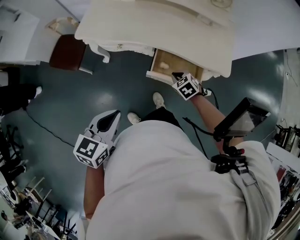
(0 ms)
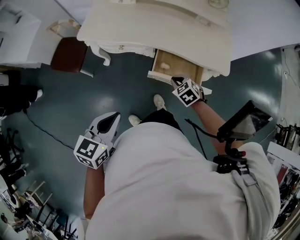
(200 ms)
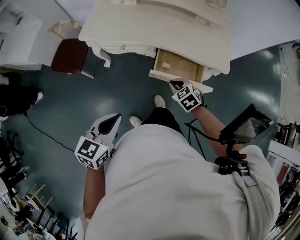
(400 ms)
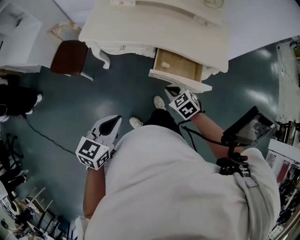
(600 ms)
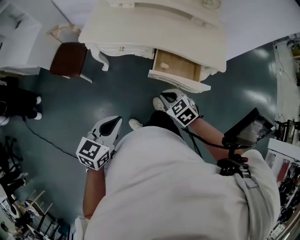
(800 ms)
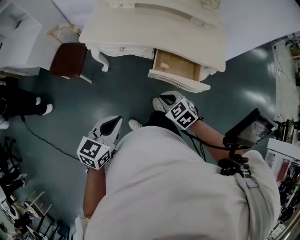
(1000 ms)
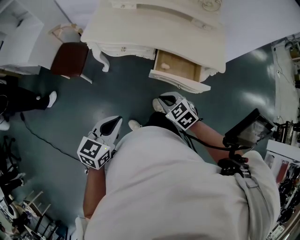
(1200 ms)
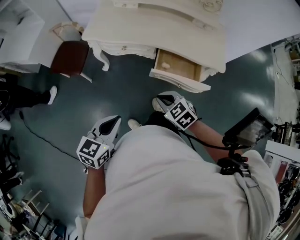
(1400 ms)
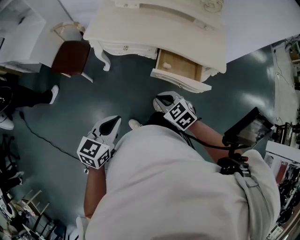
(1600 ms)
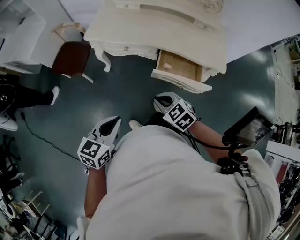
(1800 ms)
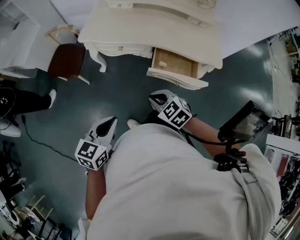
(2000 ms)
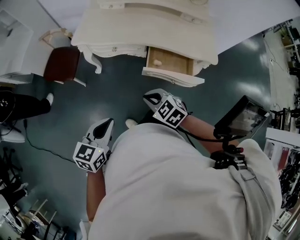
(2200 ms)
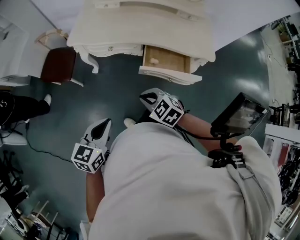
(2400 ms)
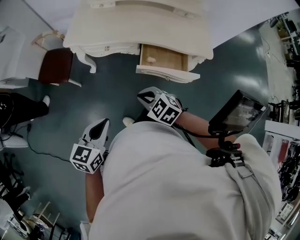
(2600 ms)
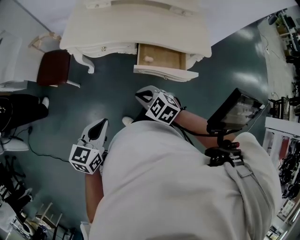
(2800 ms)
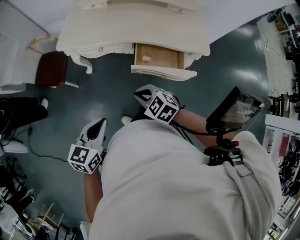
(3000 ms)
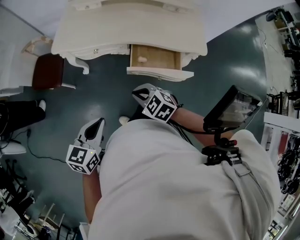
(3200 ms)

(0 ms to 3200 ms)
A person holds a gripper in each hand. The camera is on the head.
0 ms - 1600 ms: The left gripper goes about 10 cm backward and to the left. The right gripper goes about 25 cm backward, to the left and upward.
1600 ms - 3200 ms: There are only small adjustments of the grippers.

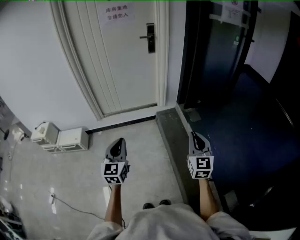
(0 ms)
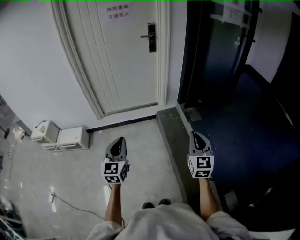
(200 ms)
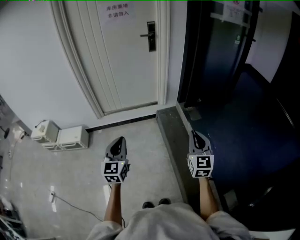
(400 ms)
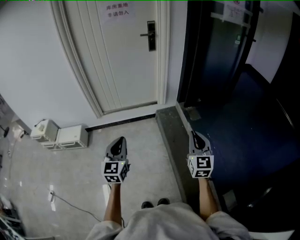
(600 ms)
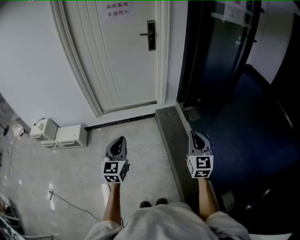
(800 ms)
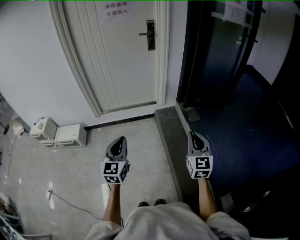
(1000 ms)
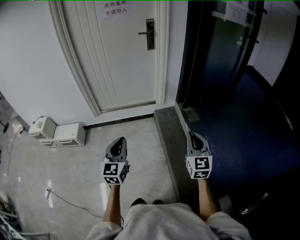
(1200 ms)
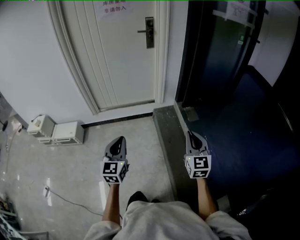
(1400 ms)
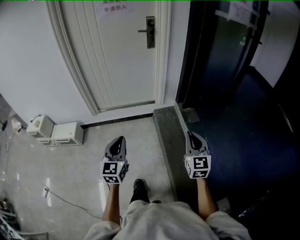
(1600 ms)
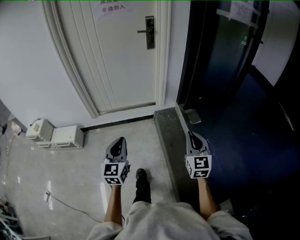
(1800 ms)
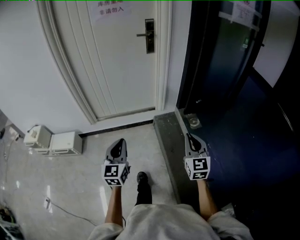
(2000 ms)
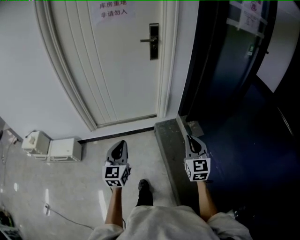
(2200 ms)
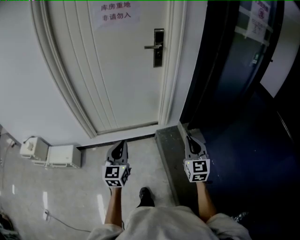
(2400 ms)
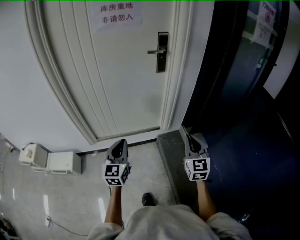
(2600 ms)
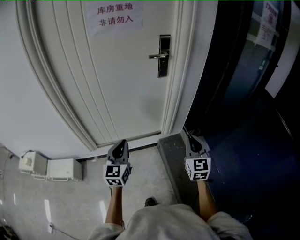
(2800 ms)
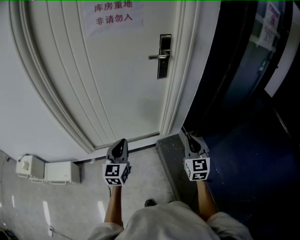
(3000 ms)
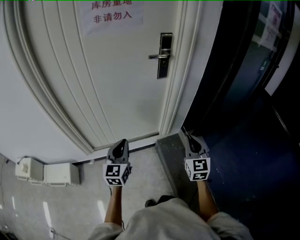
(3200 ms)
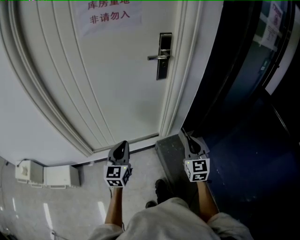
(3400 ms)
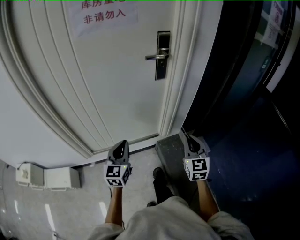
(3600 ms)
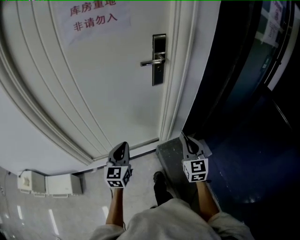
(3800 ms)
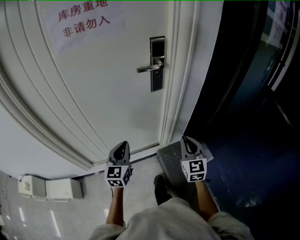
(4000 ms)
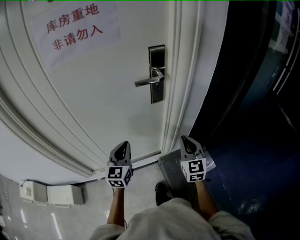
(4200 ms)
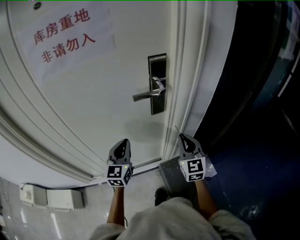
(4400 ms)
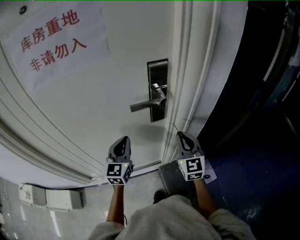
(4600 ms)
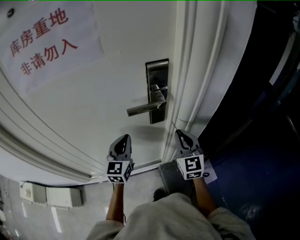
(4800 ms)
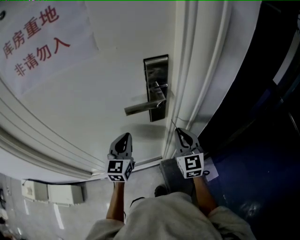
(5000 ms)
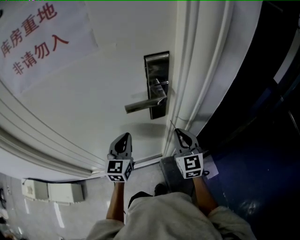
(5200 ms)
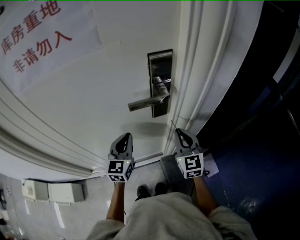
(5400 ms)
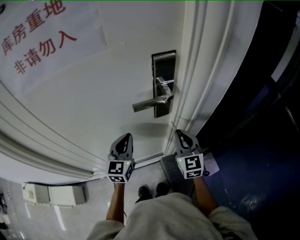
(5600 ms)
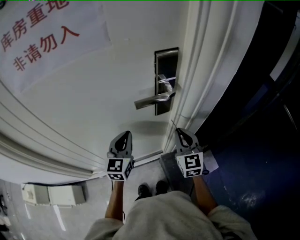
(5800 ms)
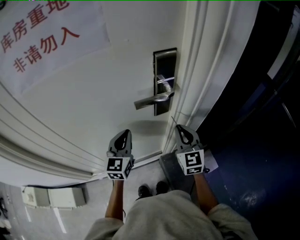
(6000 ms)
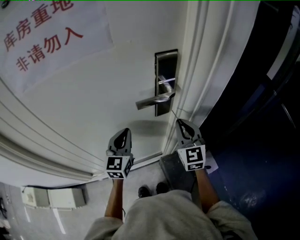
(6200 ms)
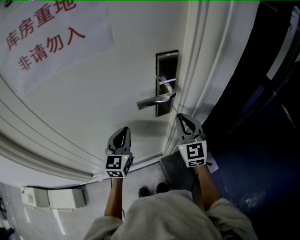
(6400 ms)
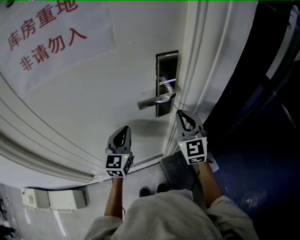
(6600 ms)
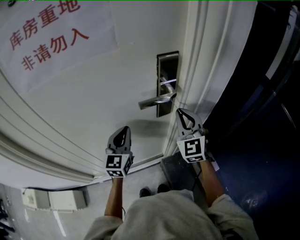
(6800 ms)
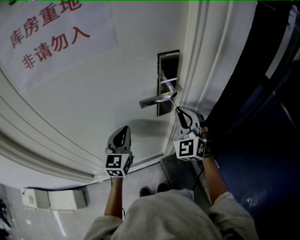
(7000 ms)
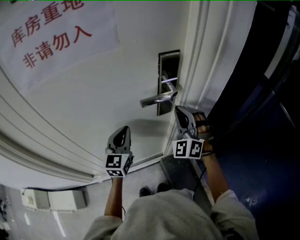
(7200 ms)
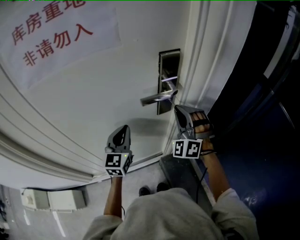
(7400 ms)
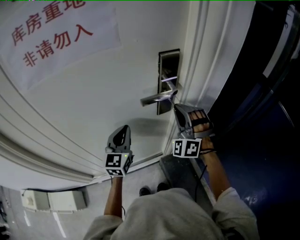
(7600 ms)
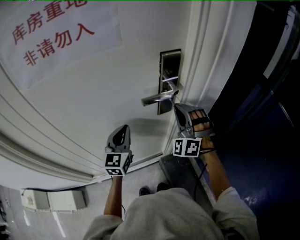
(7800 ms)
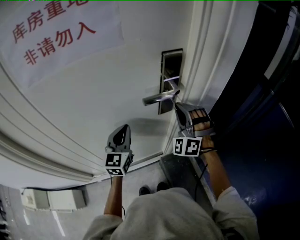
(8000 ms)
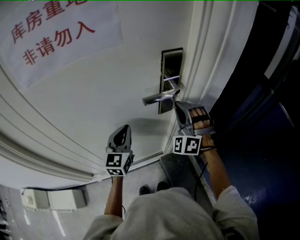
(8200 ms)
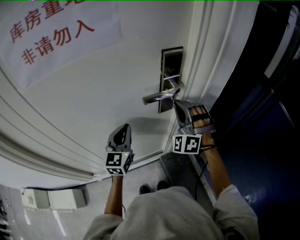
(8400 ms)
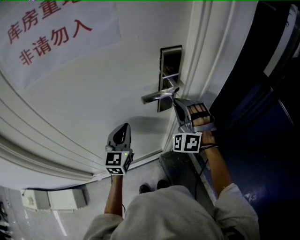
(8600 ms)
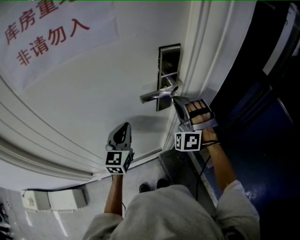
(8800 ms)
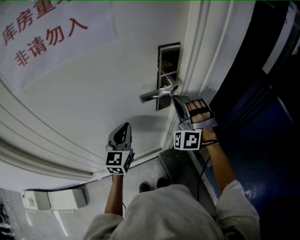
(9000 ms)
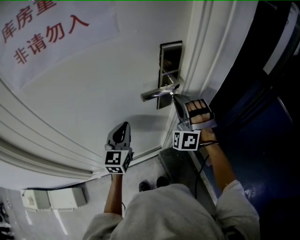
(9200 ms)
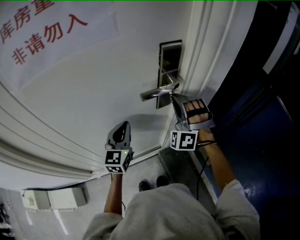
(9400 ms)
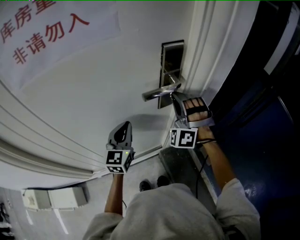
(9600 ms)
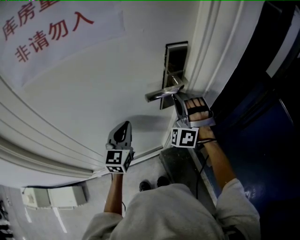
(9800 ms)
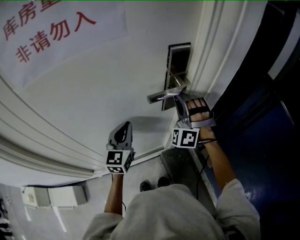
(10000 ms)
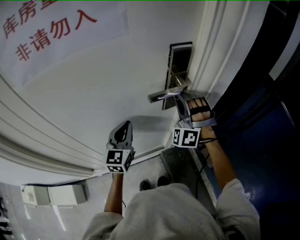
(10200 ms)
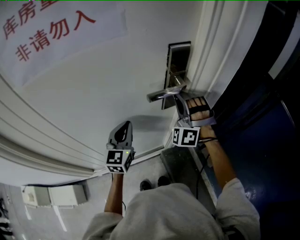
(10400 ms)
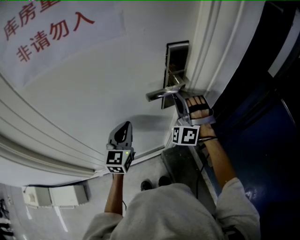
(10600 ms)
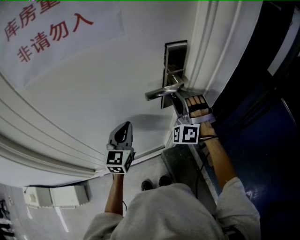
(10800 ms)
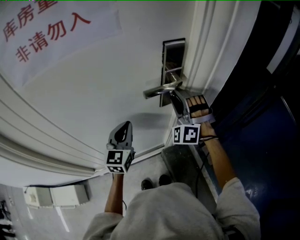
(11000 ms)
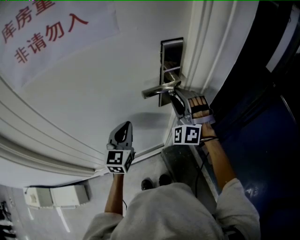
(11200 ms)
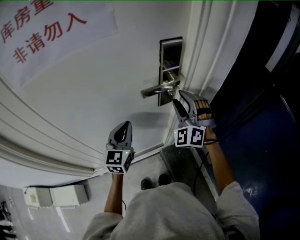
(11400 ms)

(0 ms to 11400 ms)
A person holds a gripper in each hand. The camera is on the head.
0 ms - 1400 ms: The left gripper heads to the right, covering roughly 5 cm, while the right gripper ends up about 5 cm from where it was.
1400 ms - 2800 ms: The two grippers travel together, forward, roughly 50 cm.
2800 ms - 4200 ms: Both grippers move forward, roughly 30 cm.
4200 ms - 5600 ms: The grippers both shift forward by roughly 15 cm.
5600 ms - 7200 ms: The right gripper moves upward, approximately 10 cm, and rolls counterclockwise, seen from behind, by some 50 degrees.
7200 ms - 8600 ms: The grippers move only a little.
8600 ms - 10000 ms: The grippers stay close to where they were, moving slightly.
10000 ms - 11400 ms: The right gripper swivels some 20 degrees, and opens its fingers.

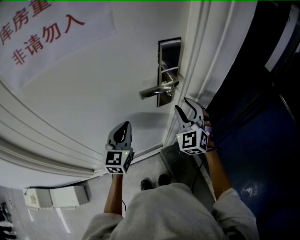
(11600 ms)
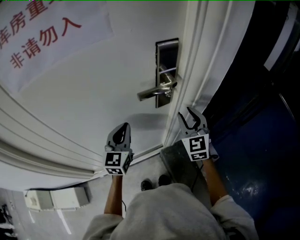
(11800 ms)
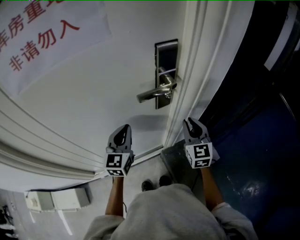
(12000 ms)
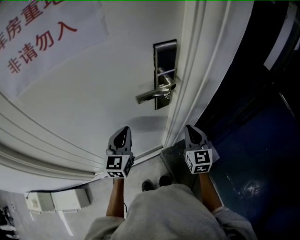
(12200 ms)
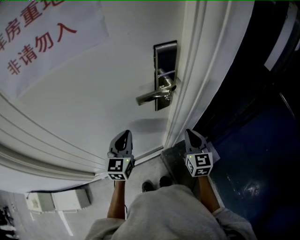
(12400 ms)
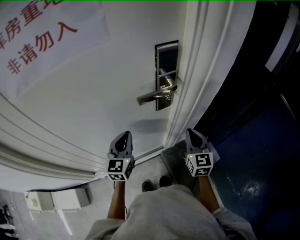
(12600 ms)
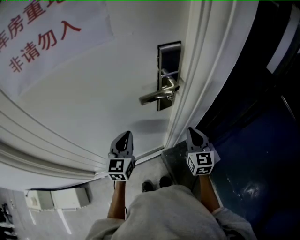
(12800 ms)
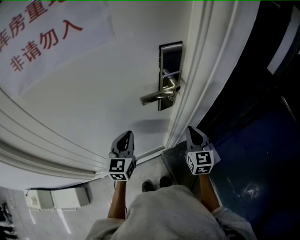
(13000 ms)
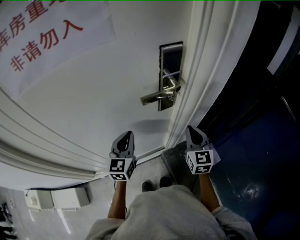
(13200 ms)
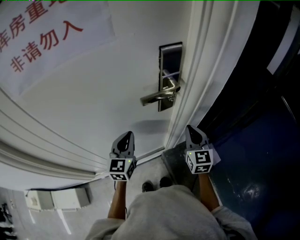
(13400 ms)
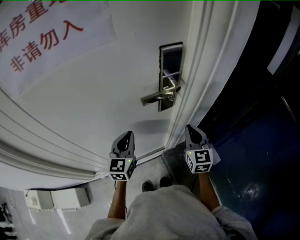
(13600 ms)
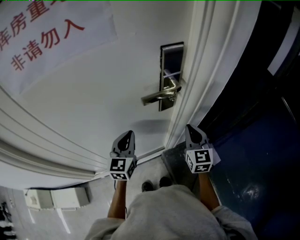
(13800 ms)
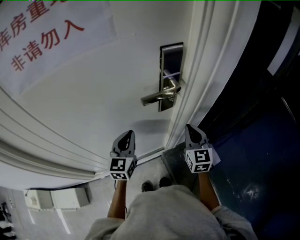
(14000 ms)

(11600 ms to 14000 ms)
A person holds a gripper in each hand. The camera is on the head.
11600 ms - 12800 ms: The right gripper is displaced downward, to the right and backward by about 10 cm, rotates around the line of its fingers by about 40 degrees, clockwise from behind, and closes.
12800 ms - 14000 ms: The grippers stay close to where they were, moving slightly.

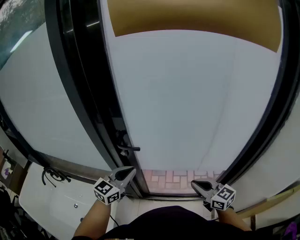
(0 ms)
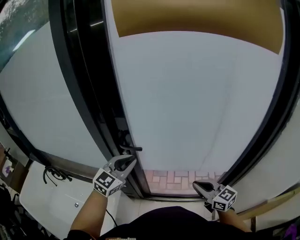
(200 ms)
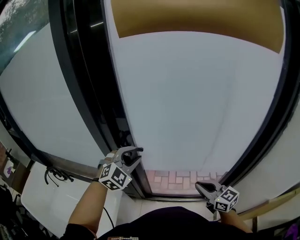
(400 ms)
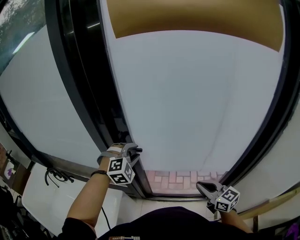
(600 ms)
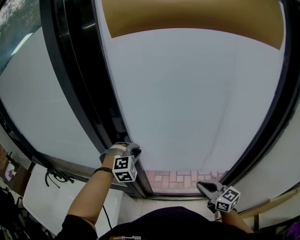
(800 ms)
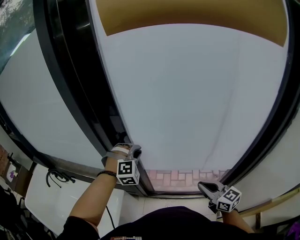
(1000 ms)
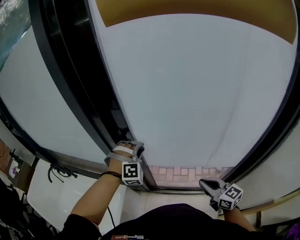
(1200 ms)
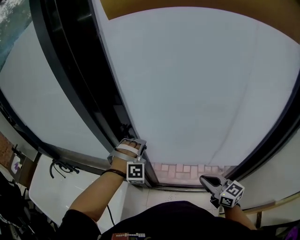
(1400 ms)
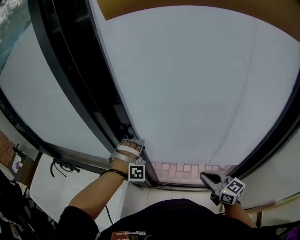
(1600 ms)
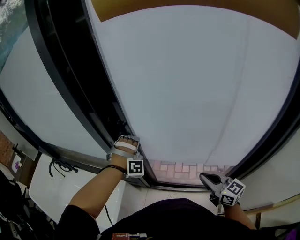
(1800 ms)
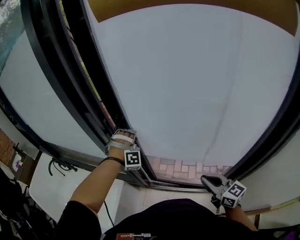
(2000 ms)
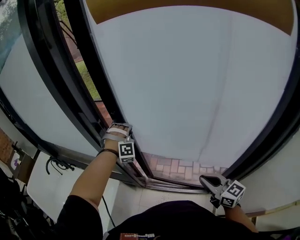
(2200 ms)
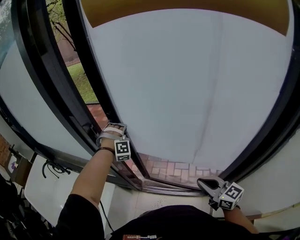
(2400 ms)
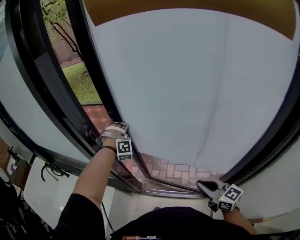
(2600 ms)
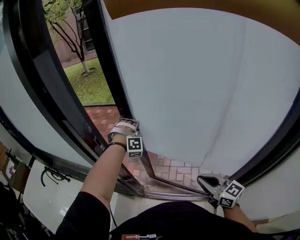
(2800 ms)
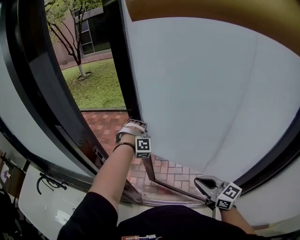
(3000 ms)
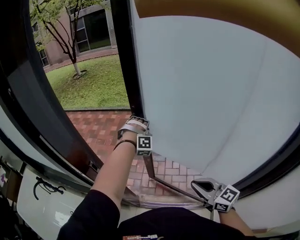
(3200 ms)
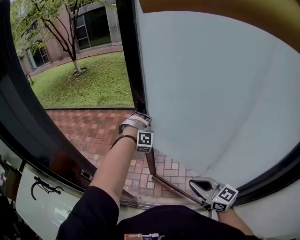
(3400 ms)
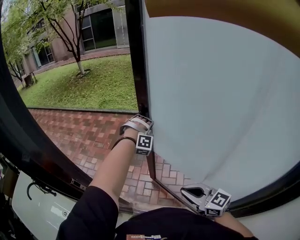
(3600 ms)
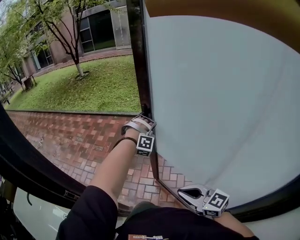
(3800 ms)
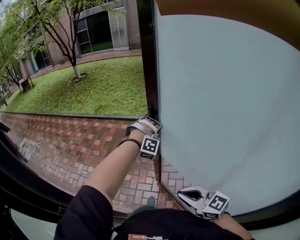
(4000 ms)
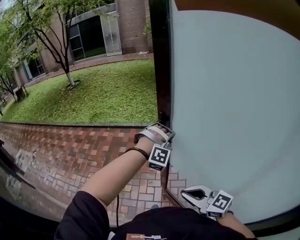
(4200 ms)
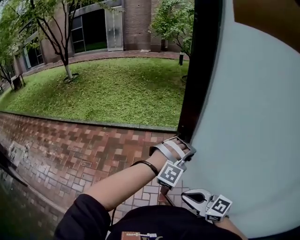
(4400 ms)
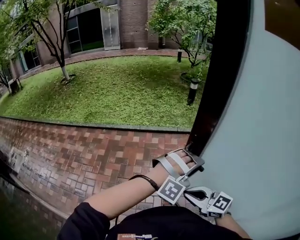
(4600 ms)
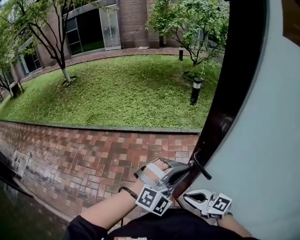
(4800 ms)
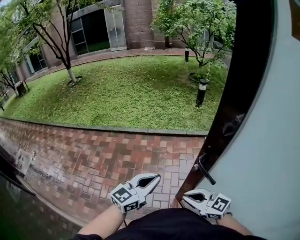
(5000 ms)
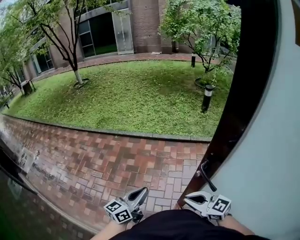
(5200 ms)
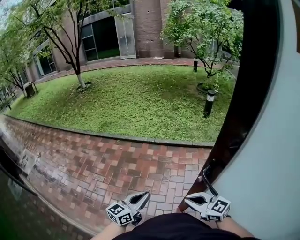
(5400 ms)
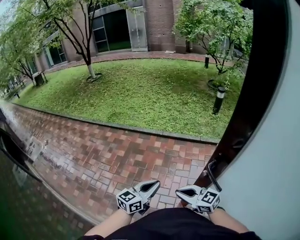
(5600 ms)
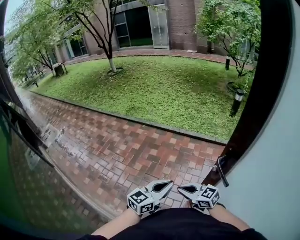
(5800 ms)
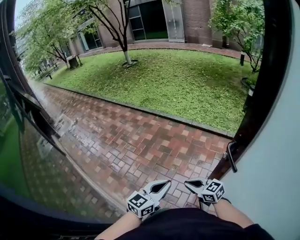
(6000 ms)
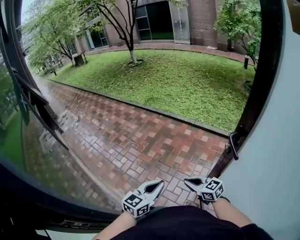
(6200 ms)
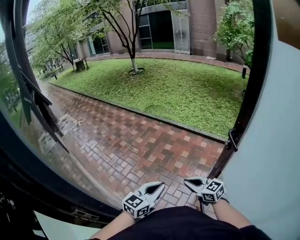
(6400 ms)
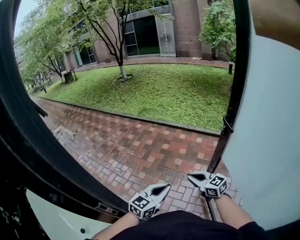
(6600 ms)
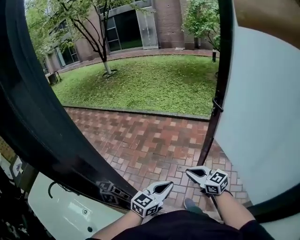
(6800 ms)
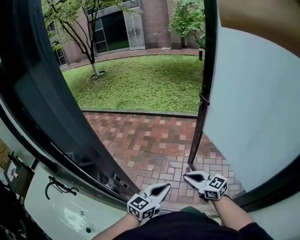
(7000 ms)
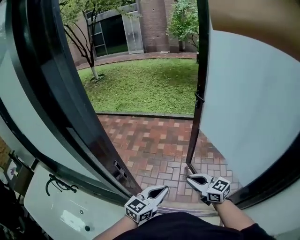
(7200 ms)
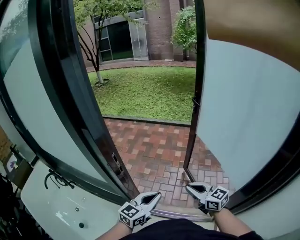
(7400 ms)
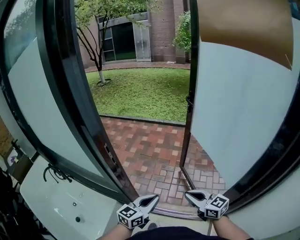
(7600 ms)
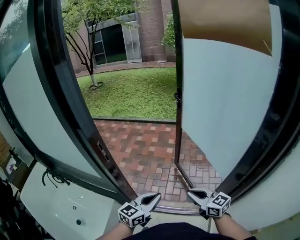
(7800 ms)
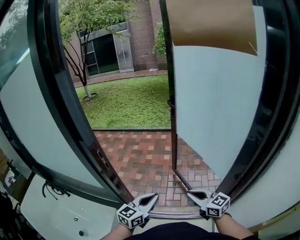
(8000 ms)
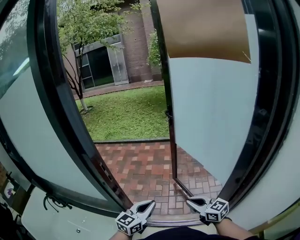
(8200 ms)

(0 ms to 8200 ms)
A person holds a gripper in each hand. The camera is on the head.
0 ms - 1600 ms: The left gripper travels forward by roughly 10 cm, rotates around the line of its fingers by approximately 100 degrees, clockwise from behind, and opens its fingers.
1600 ms - 3200 ms: The left gripper goes some 35 cm forward and to the right, and closes its fingers, while the right gripper moves forward and to the right, approximately 15 cm.
3200 ms - 5000 ms: The left gripper ends up about 25 cm from where it was, twists some 100 degrees counterclockwise, seen from behind, and opens, then closes again. Meanwhile the right gripper changes place by roughly 50 cm.
5000 ms - 6600 ms: The right gripper reaches some 10 cm downward, then returns, while the left gripper changes place by approximately 35 cm, and rotates approximately 30 degrees.
6600 ms - 8200 ms: The grippers both shift backward by approximately 40 cm. The right gripper swivels about 20 degrees.
